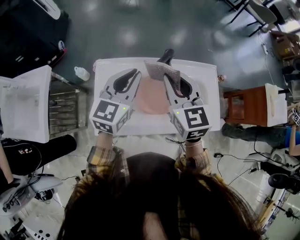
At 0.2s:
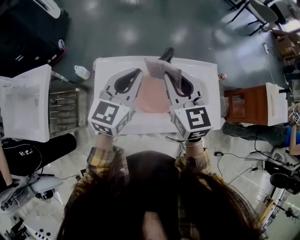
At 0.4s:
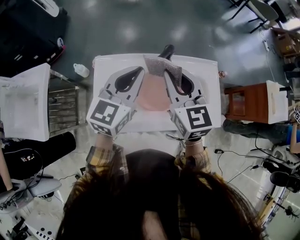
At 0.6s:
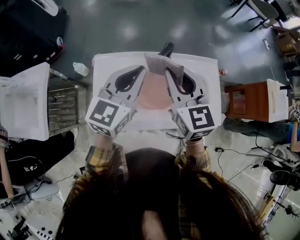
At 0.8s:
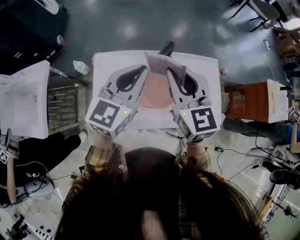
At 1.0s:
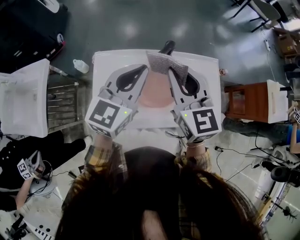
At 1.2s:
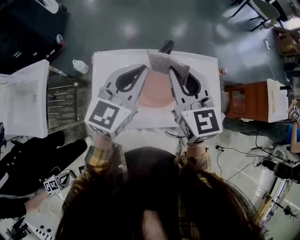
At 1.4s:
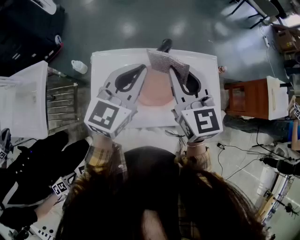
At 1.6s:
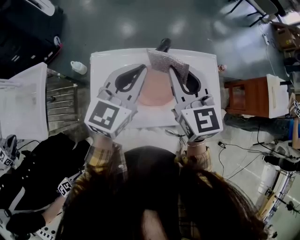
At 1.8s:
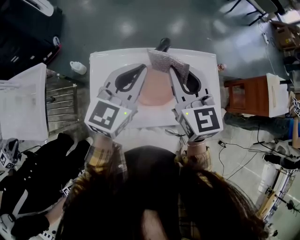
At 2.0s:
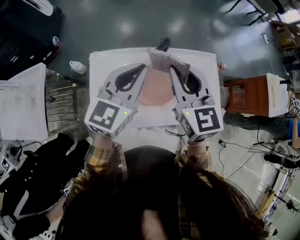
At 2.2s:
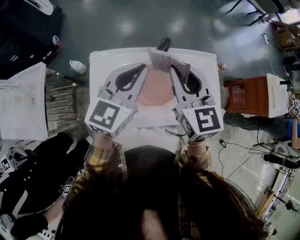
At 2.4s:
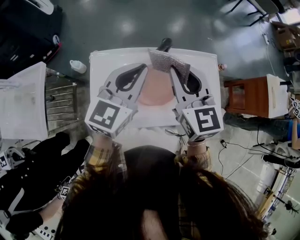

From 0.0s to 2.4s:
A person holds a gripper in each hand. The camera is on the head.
From 0.0s to 2.4s: The grippers move only a little.

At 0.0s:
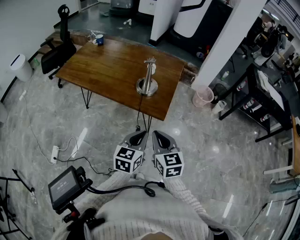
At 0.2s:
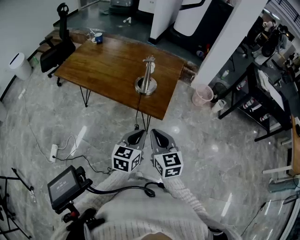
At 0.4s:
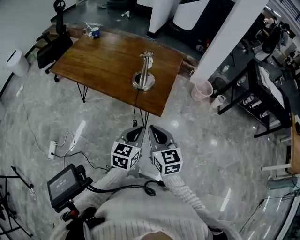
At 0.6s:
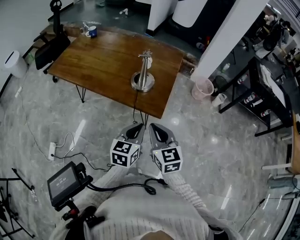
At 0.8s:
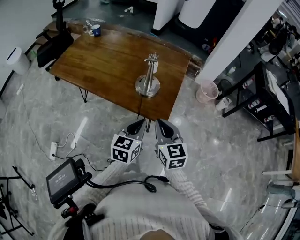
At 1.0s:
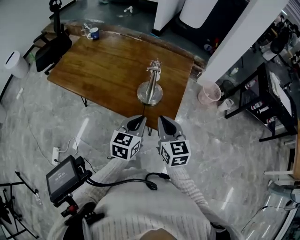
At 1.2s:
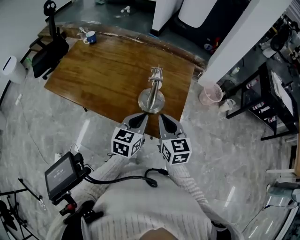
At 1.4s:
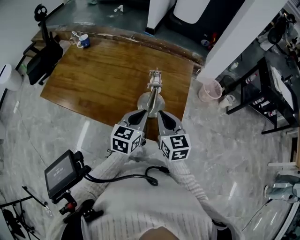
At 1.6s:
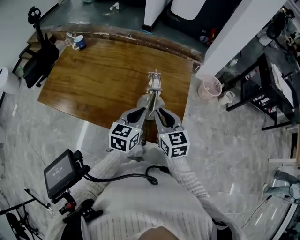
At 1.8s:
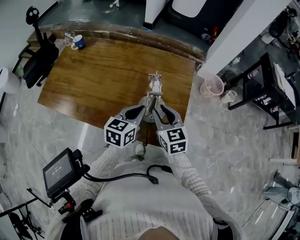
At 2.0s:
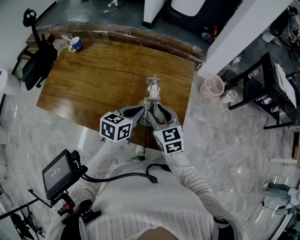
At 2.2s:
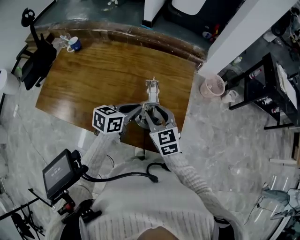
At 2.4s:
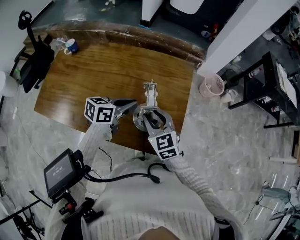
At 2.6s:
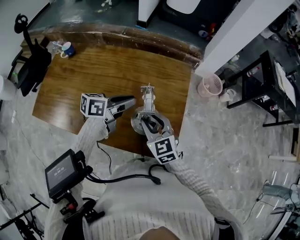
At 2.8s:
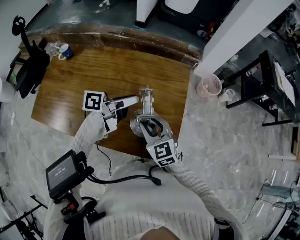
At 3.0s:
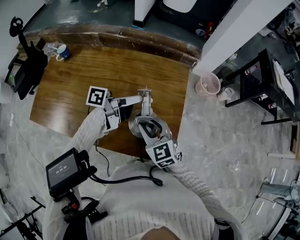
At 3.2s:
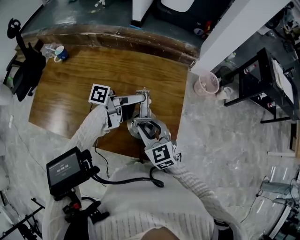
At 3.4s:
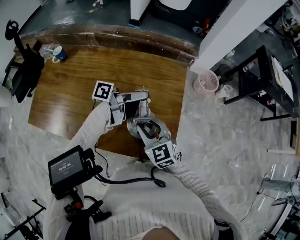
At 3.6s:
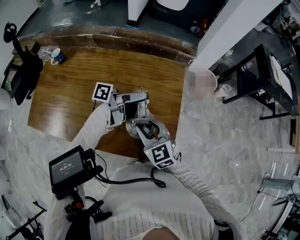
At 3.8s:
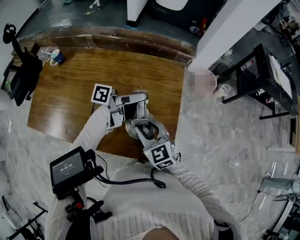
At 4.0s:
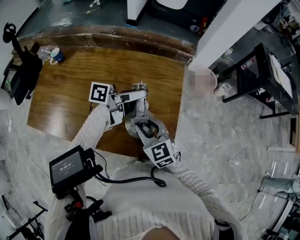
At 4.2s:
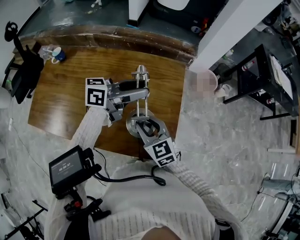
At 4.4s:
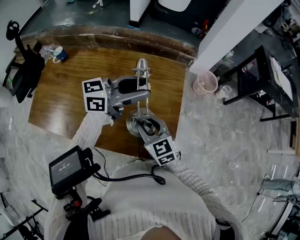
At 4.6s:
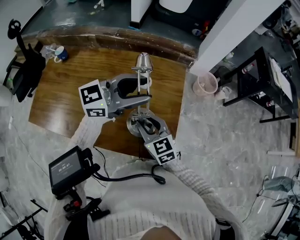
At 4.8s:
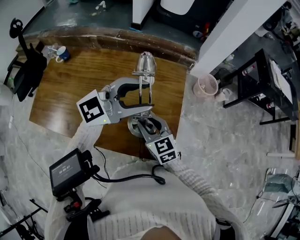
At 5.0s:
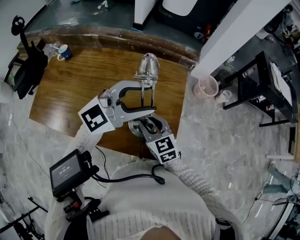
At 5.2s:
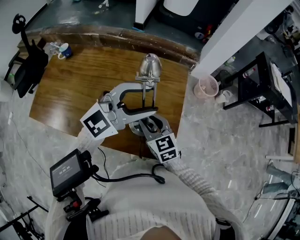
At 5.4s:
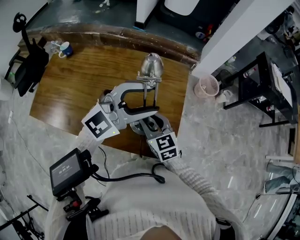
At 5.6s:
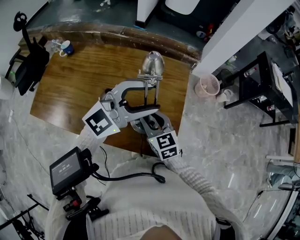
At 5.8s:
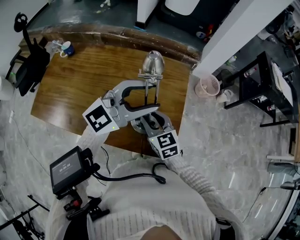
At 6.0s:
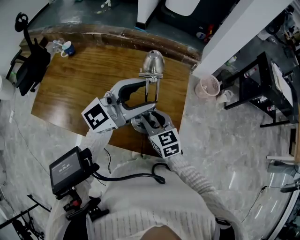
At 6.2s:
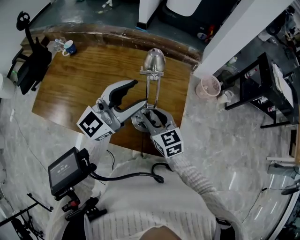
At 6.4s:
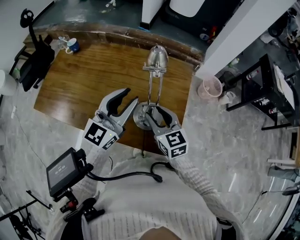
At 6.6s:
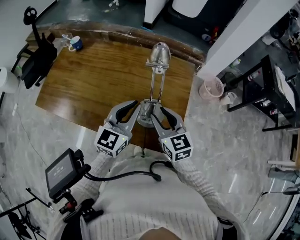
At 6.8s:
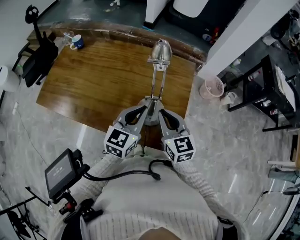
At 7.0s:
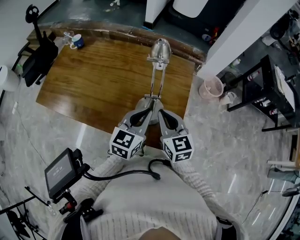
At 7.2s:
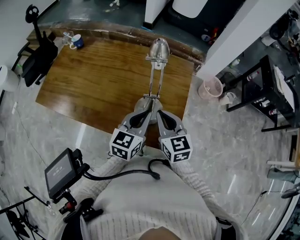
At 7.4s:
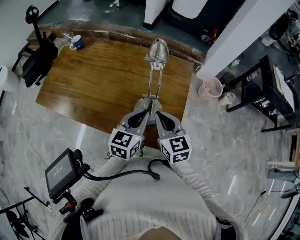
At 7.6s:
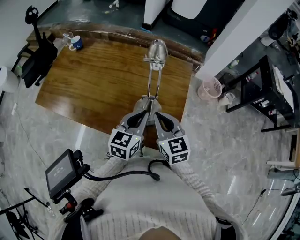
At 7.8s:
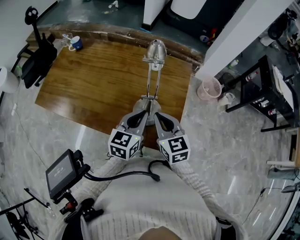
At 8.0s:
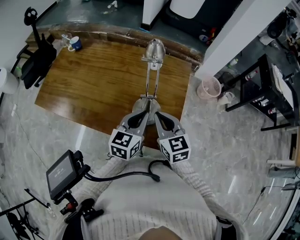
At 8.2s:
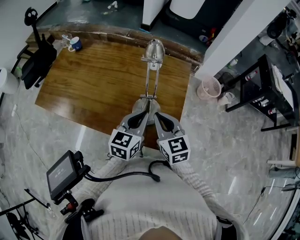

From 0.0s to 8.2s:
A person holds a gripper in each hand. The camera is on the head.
From 0.0s to 1.6s: The grippers both shift forward by roughly 35 cm.
From 1.6s to 3.2s: The left gripper moves forward, approximately 10 cm, swivels some 80 degrees, and opens its fingers; the right gripper moves roughly 5 cm, and opens.
From 3.2s to 5.0s: The left gripper goes about 15 cm upward and backward, and twists about 100 degrees clockwise, seen from behind.
From 5.0s to 6.6s: The right gripper moves some 5 cm; the left gripper moves downward and to the left, roughly 10 cm, changes its angle by approximately 50 degrees, and closes up.
From 6.6s to 8.2s: The left gripper moves approximately 10 cm. Meanwhile the right gripper closes up.

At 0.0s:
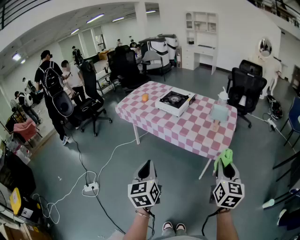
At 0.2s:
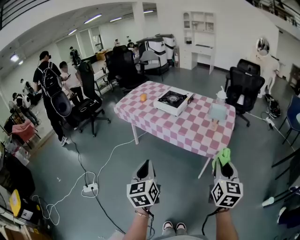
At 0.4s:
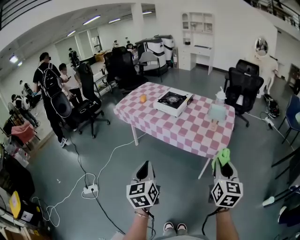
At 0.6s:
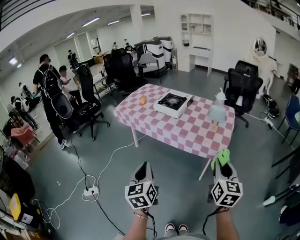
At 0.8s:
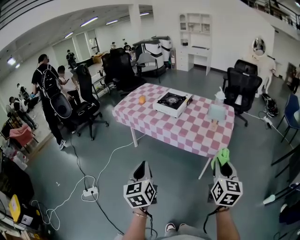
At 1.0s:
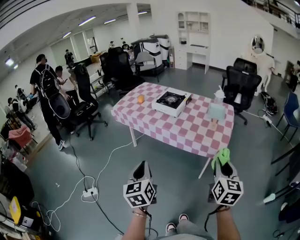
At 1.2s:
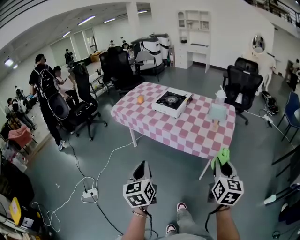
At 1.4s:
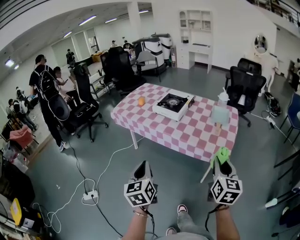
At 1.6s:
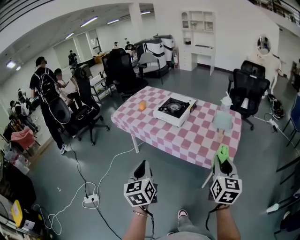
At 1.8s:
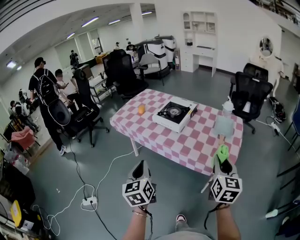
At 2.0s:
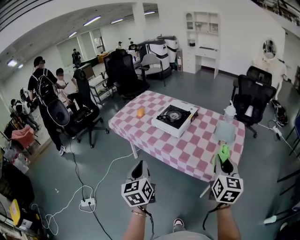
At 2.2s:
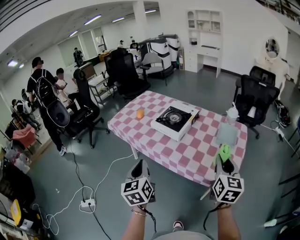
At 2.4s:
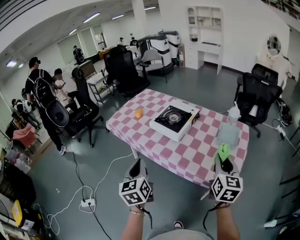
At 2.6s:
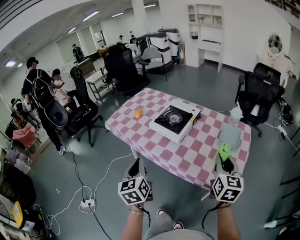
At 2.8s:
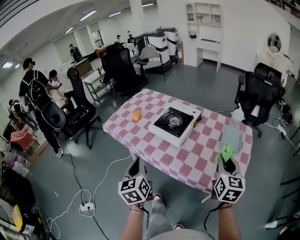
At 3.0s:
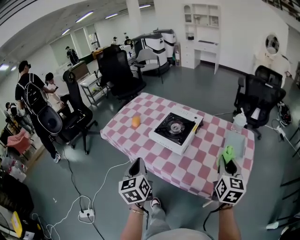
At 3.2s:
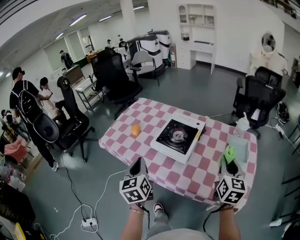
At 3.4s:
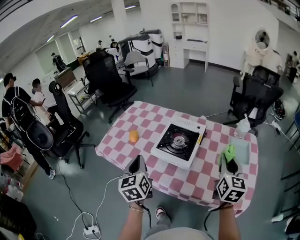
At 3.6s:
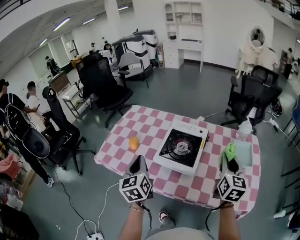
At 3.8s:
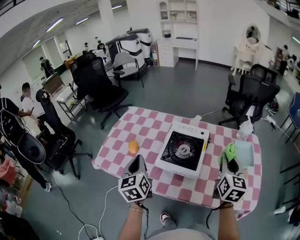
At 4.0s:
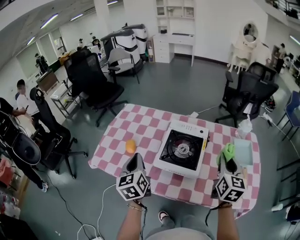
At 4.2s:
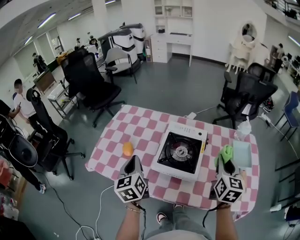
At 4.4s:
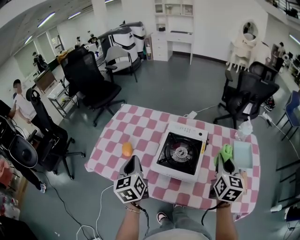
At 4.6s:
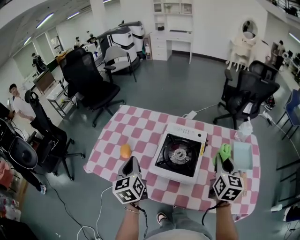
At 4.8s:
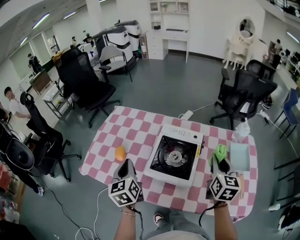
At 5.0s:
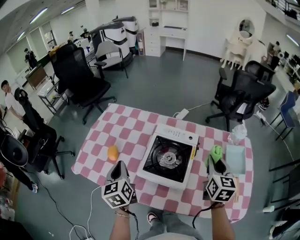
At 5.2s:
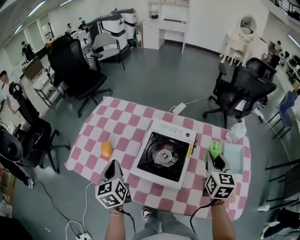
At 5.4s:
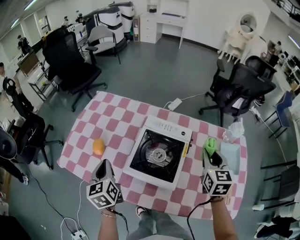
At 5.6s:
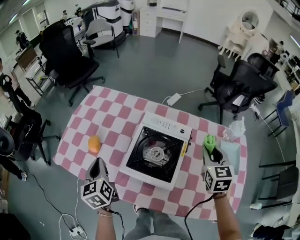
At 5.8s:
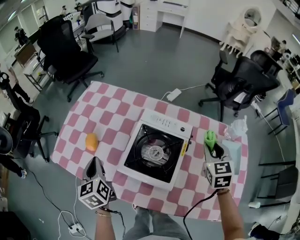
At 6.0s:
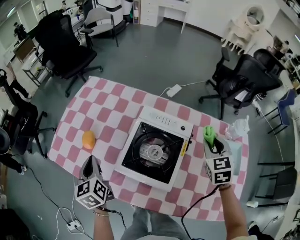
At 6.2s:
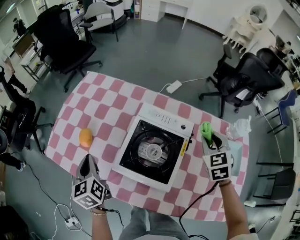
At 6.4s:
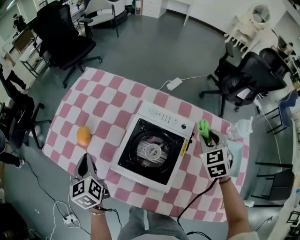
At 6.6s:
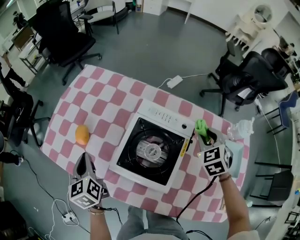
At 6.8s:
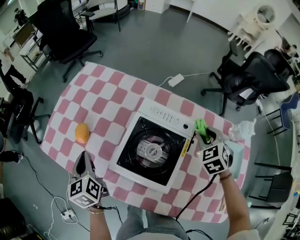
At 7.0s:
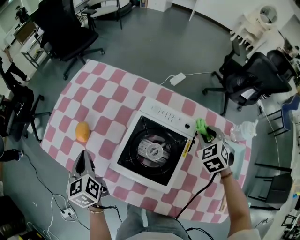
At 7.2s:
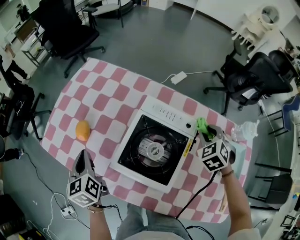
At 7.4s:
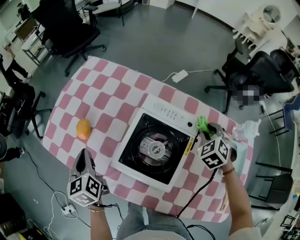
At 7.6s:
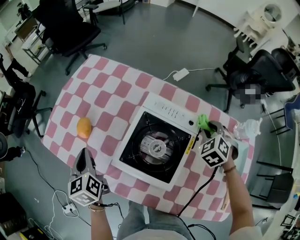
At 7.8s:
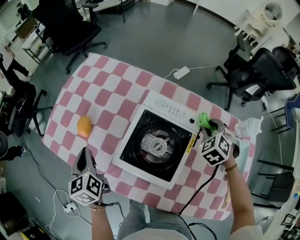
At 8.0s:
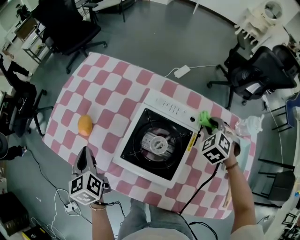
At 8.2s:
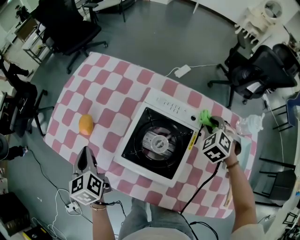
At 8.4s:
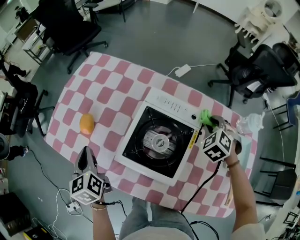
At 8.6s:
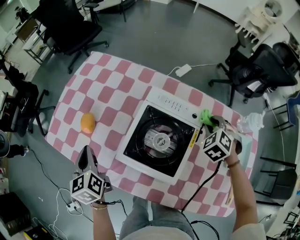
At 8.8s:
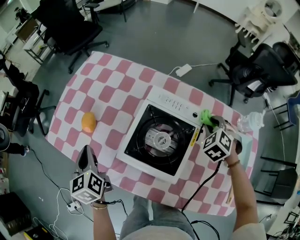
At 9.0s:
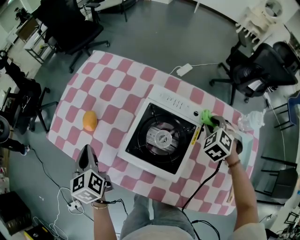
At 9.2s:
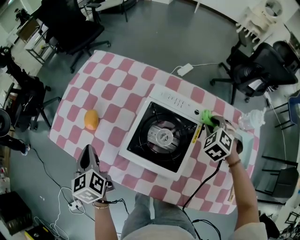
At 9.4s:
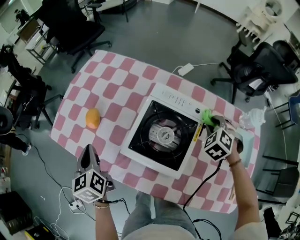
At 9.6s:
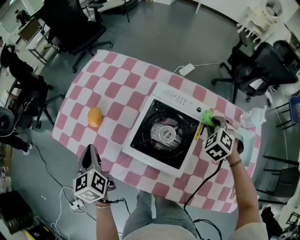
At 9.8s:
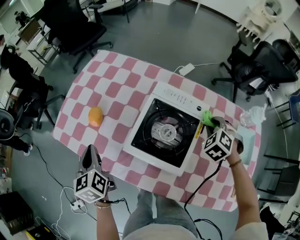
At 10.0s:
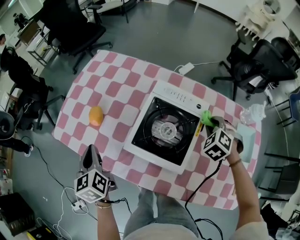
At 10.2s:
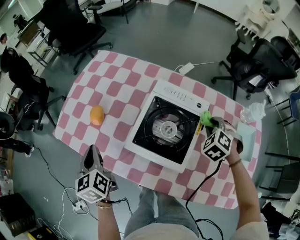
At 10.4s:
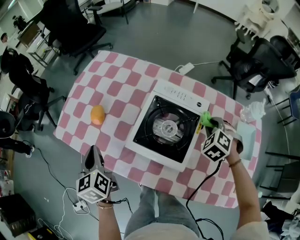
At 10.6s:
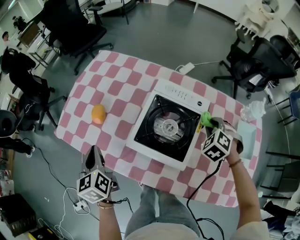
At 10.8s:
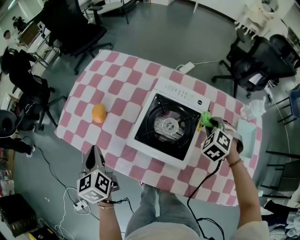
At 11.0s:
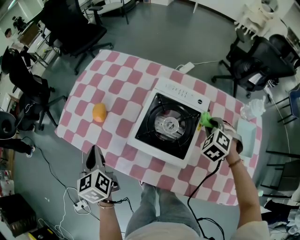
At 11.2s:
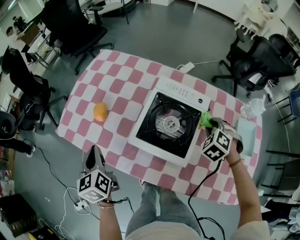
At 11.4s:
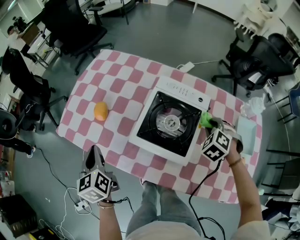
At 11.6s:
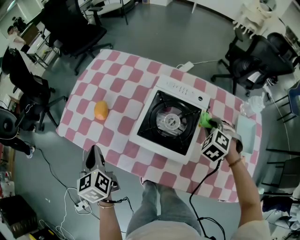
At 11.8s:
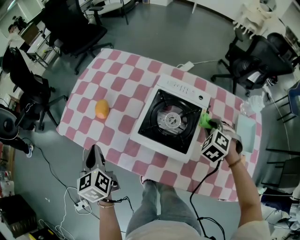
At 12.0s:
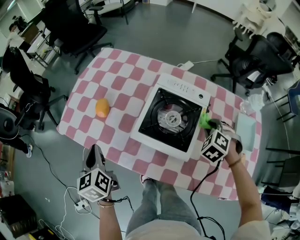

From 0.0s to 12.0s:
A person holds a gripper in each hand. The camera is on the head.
From 0.0s to 1.6s: The two grippers go some 15 cm forward.
From 1.6s to 3.0s: Both grippers travel together forward, roughly 30 cm.
From 3.0s to 4.4s: Both grippers move forward and to the left, about 25 cm.
From 4.4s to 6.0s: The left gripper is displaced downward by some 10 cm. Meanwhile the right gripper moves forward and downward, approximately 20 cm, and turns by roughly 40 degrees.
From 6.0s to 7.6s: The right gripper moves downward and forward, about 10 cm, and rotates roughly 40 degrees.
From 7.6s to 9.0s: The grippers move only a little.
From 9.0s to 10.4s: The right gripper heads backward, covering roughly 5 cm.
From 10.4s to 12.0s: The right gripper moves backward, about 5 cm.

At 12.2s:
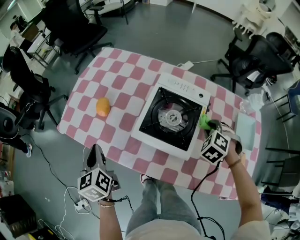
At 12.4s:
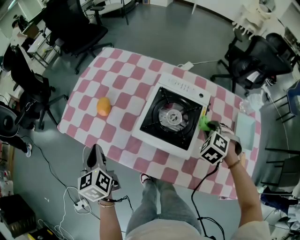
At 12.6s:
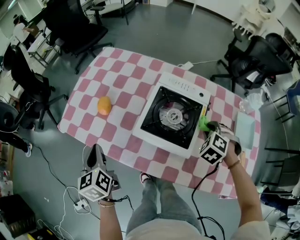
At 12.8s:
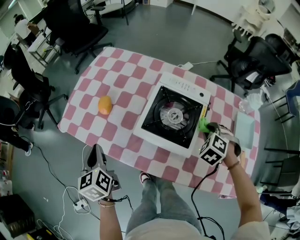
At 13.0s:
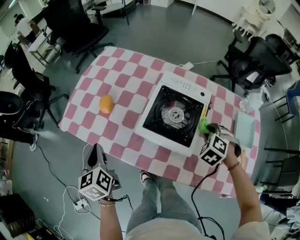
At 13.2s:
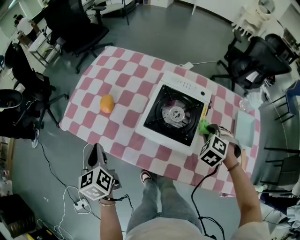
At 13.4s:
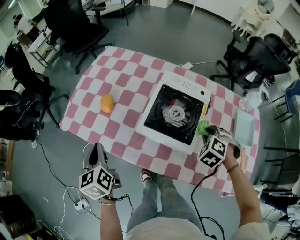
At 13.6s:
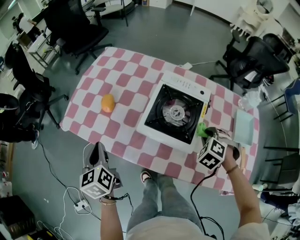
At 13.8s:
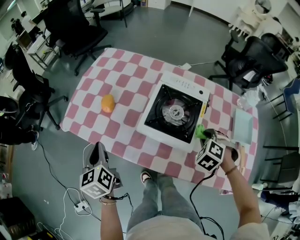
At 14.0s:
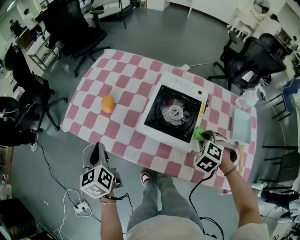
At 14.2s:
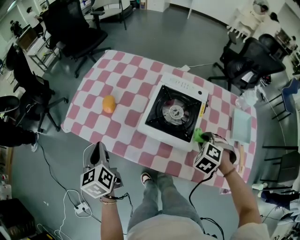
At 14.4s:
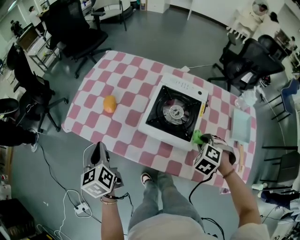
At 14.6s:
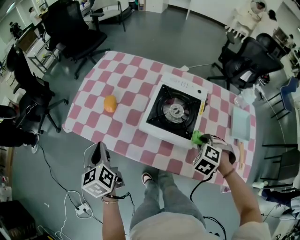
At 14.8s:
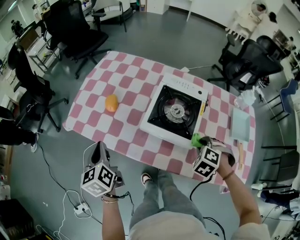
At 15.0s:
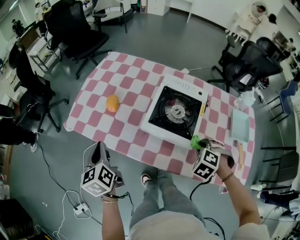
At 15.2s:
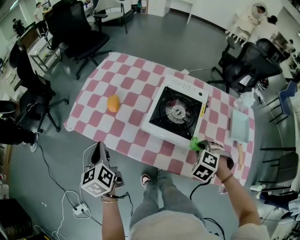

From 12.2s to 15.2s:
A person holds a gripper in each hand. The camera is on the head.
From 12.2s to 13.8s: The right gripper moves backward, approximately 10 cm.
From 13.8s to 15.2s: The right gripper travels backward by some 5 cm.
